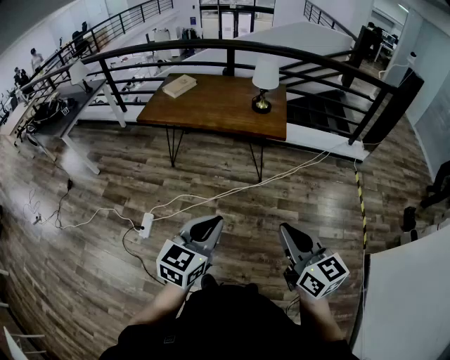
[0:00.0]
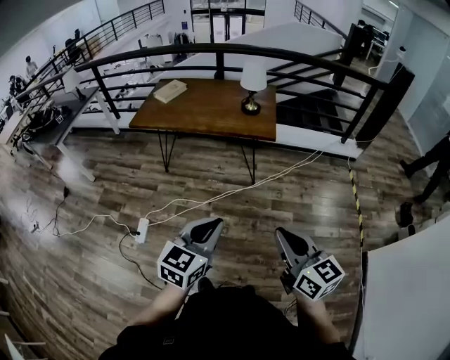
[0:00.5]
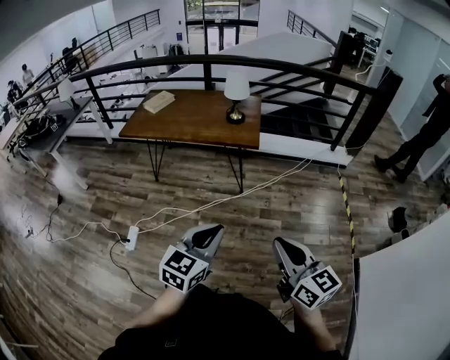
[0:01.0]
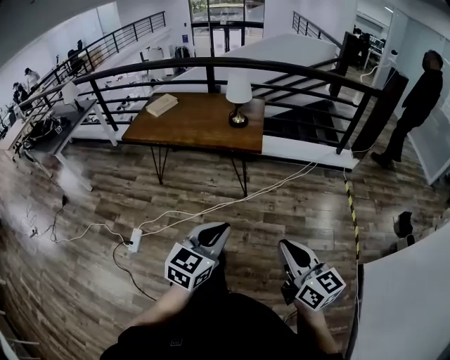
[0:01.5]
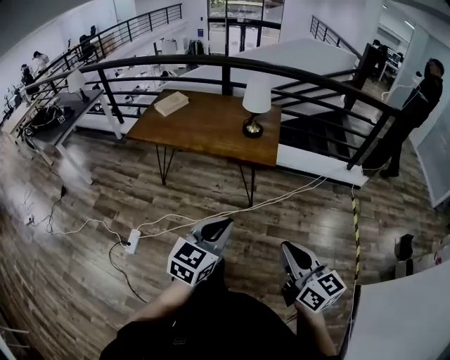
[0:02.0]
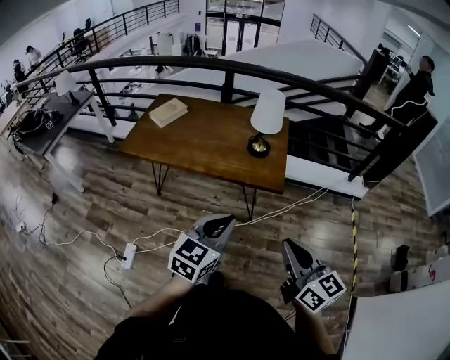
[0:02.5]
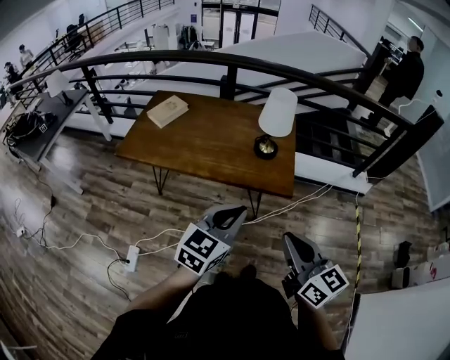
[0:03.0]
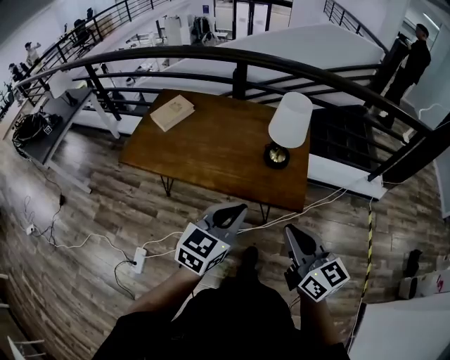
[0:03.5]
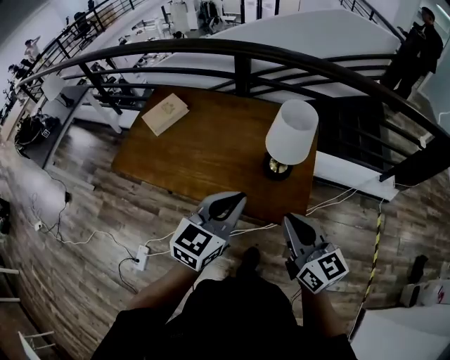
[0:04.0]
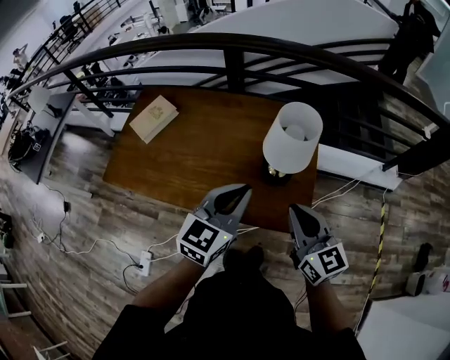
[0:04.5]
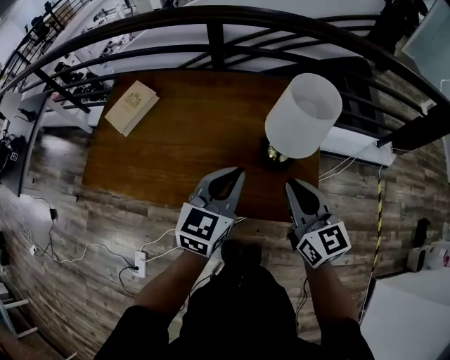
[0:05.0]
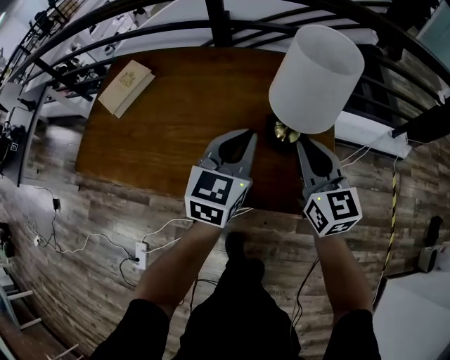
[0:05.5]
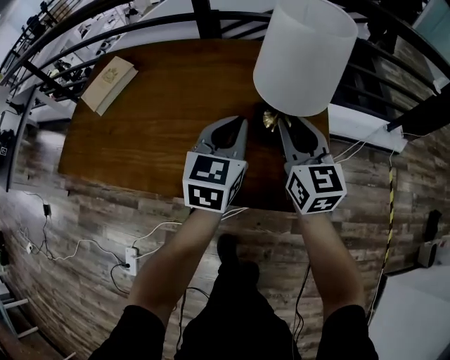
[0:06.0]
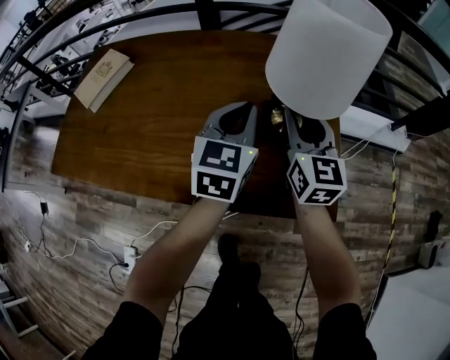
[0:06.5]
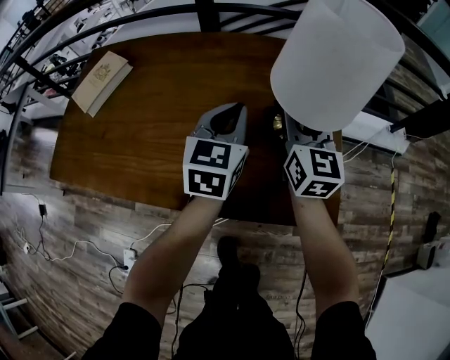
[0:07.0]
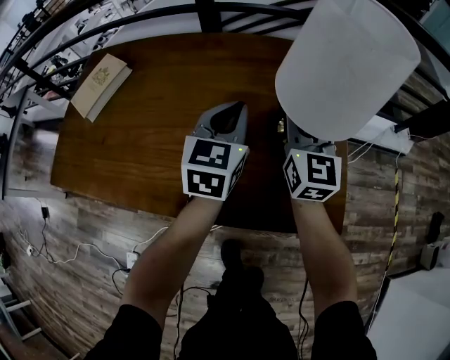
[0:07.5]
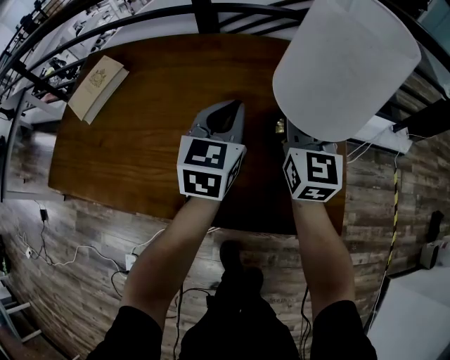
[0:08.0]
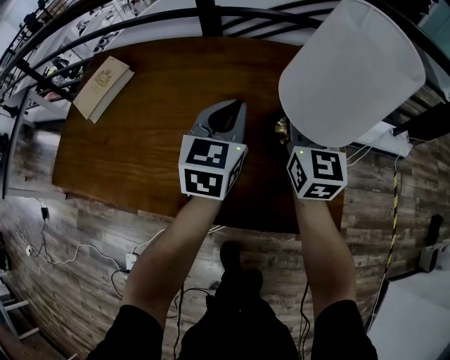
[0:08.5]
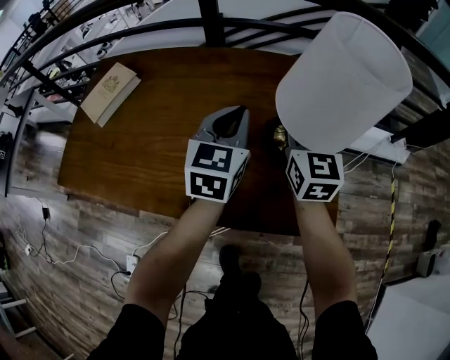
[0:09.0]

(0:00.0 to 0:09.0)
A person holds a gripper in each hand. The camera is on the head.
0:00.0 - 0:02.0: The right gripper shifts approximately 15 cm to the right and forward. Meanwhile the left gripper moves forward and to the right, about 20 cm.
0:02.0 - 0:04.5: The pair of grippers is taken forward, roughly 60 cm.
0:04.5 - 0:07.0: The left gripper shifts about 30 cm downward and forward. Meanwhile the right gripper shifts approximately 30 cm forward and downward, changes its angle by roughly 30 degrees, and opens.
0:07.0 - 0:09.0: There are only small adjustments of the grippers.

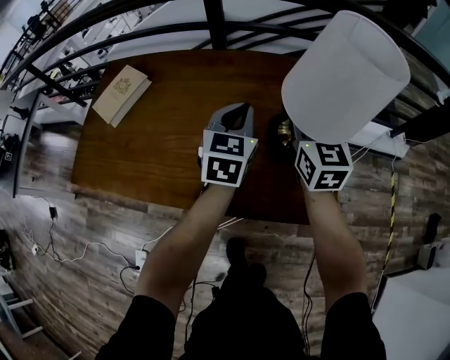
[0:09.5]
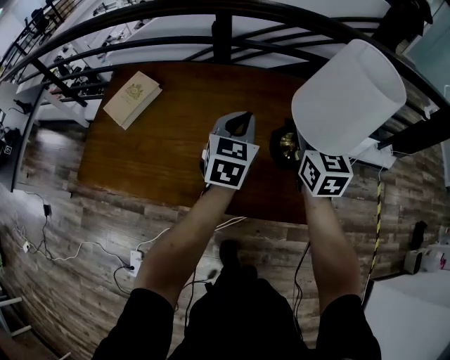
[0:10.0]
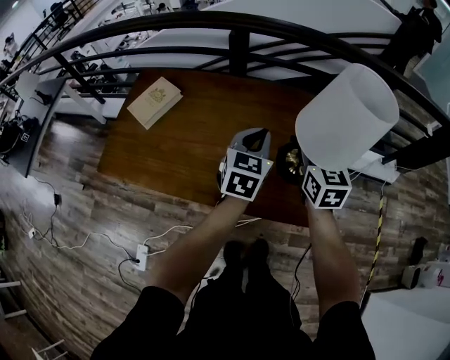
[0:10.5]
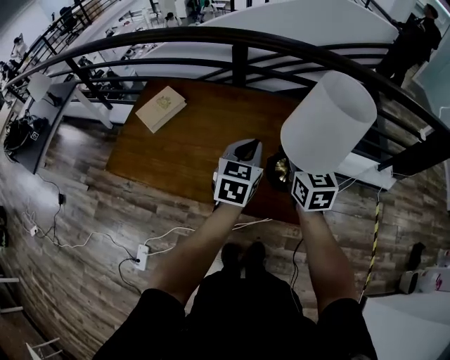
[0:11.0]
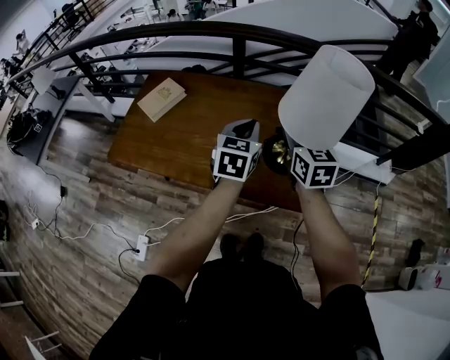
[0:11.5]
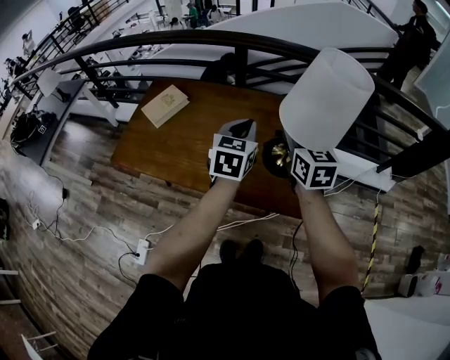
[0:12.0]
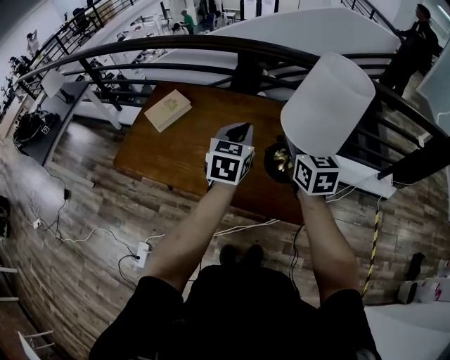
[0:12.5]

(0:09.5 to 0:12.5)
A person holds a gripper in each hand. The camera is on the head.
0:09.5 - 0:11.0: The two grippers go about 15 cm upward and backward.
0:11.0 - 0:12.5: The grippers both shift upward by about 5 cm.

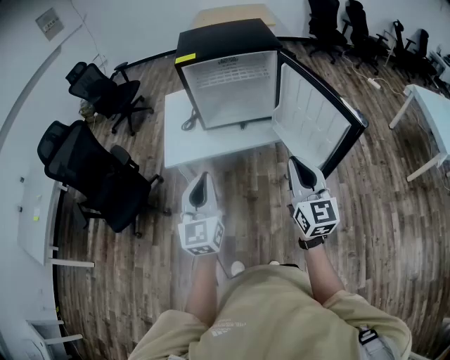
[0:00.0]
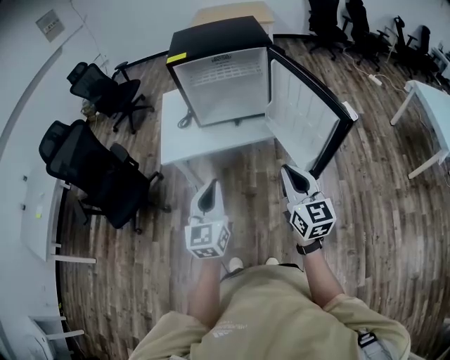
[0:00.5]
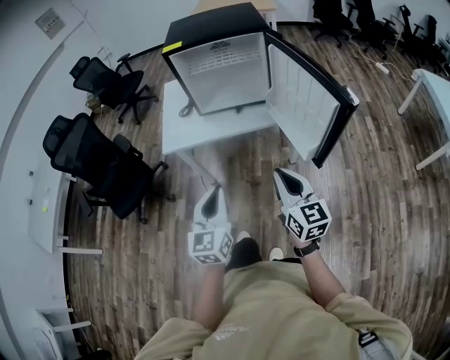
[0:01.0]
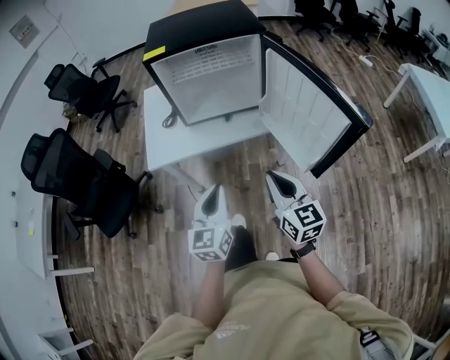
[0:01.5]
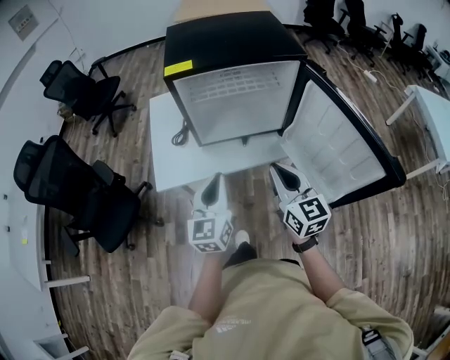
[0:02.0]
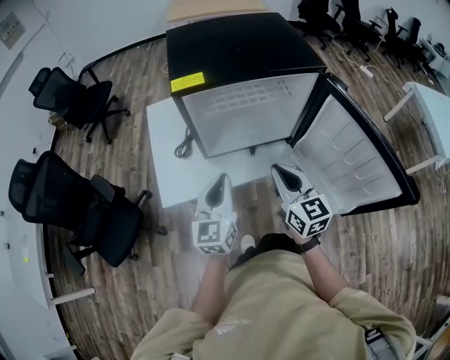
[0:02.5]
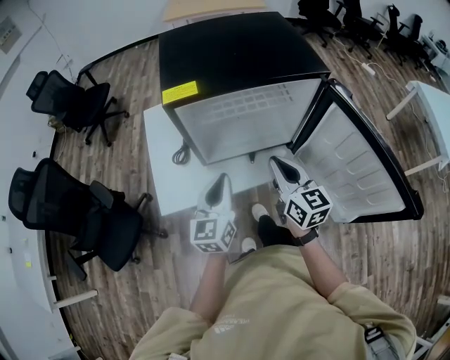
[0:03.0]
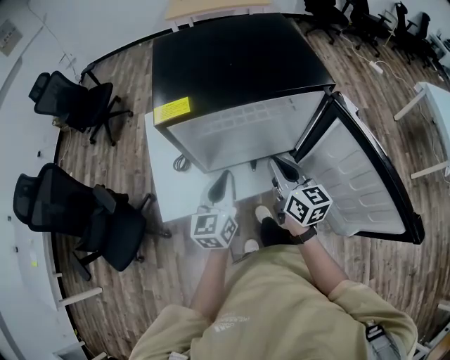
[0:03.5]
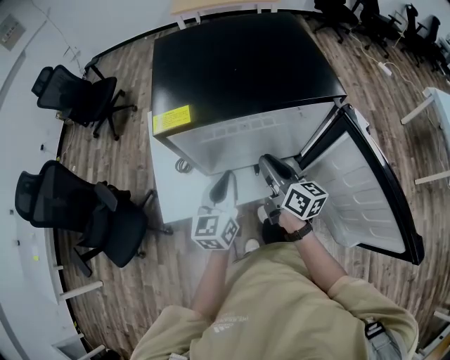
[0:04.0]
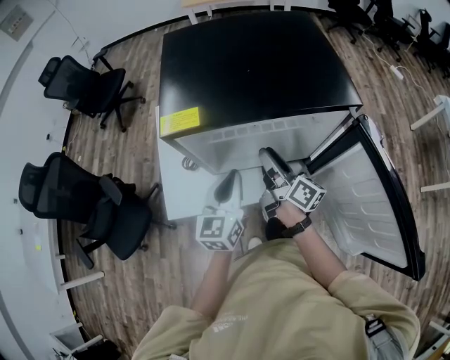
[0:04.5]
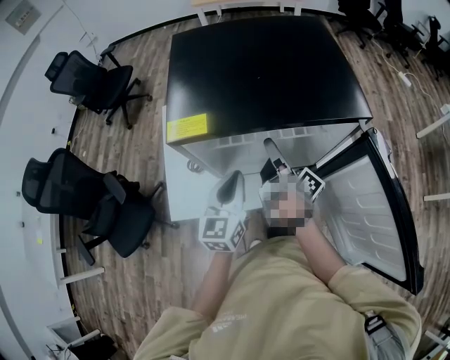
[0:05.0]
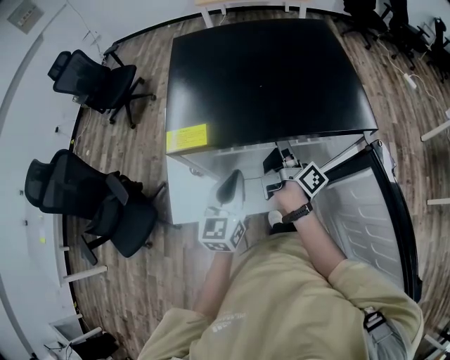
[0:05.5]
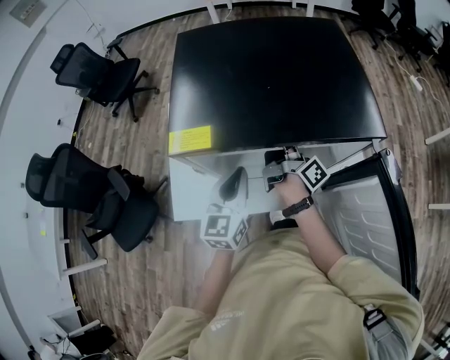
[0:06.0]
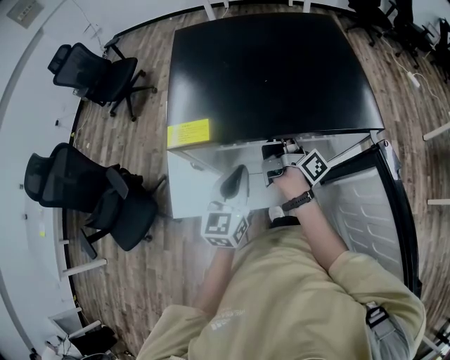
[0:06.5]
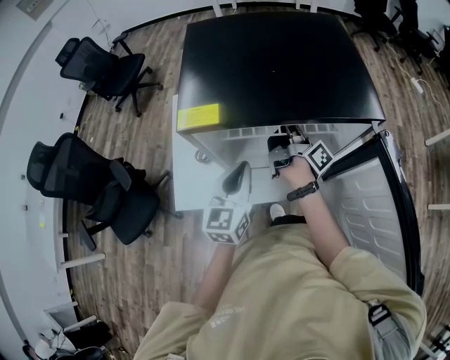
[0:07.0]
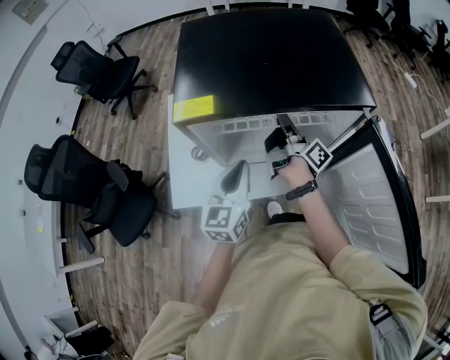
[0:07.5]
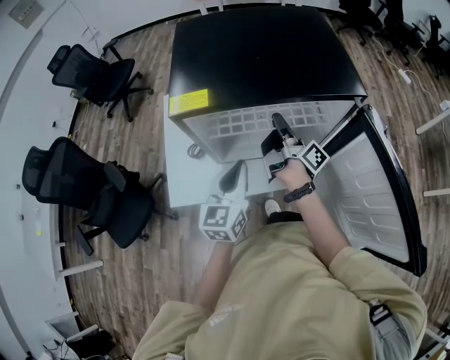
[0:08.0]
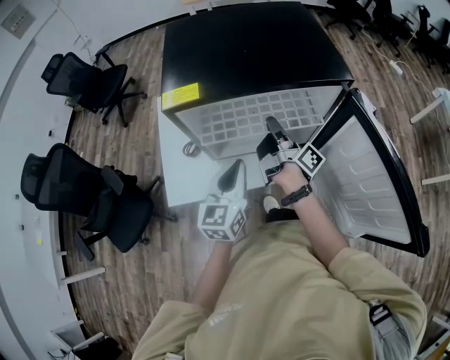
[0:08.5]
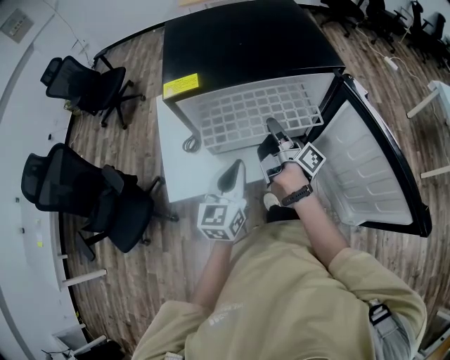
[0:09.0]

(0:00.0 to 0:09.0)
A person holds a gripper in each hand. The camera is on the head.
0:00.0 - 0:02.0: Both grippers move forward, about 20 cm.
0:02.0 - 0:04.5: Both grippers travel together forward, roughly 25 cm. The right gripper twists some 50 degrees clockwise, seen from behind, and opens its fingers.
0:04.5 - 0:07.0: The right gripper moves forward, approximately 10 cm, swivels approximately 30 degrees, and closes up.
0:07.0 - 0:09.0: The grippers both shift backward by some 10 cm.

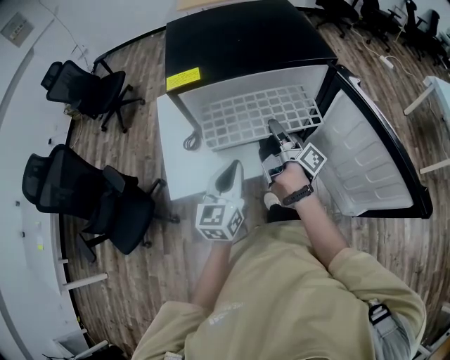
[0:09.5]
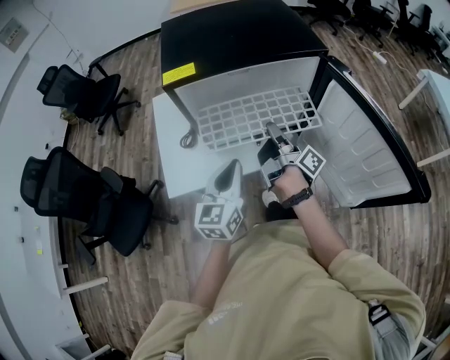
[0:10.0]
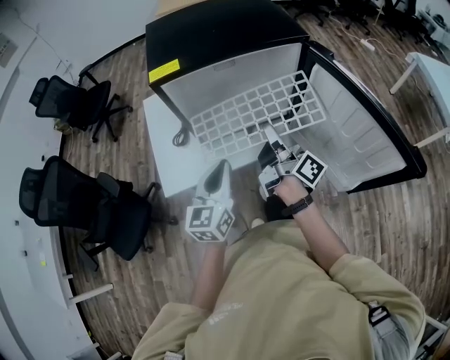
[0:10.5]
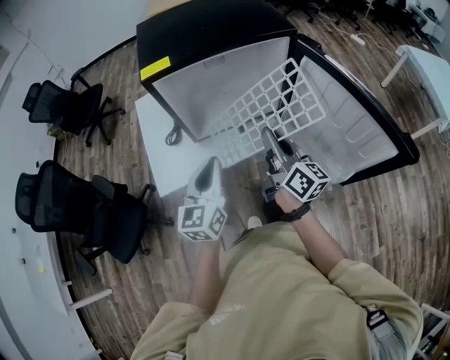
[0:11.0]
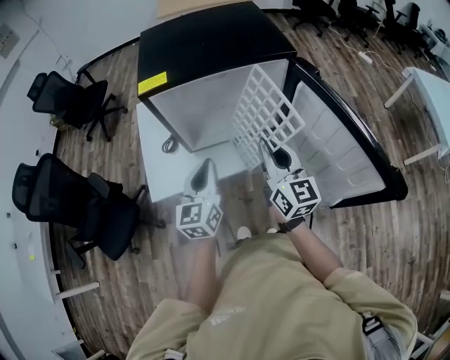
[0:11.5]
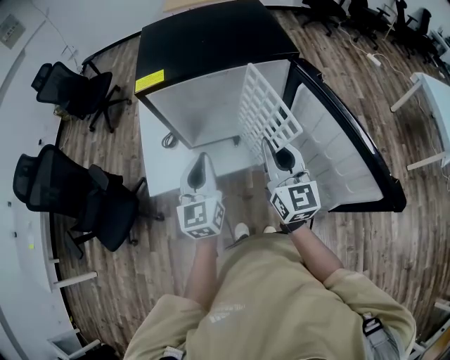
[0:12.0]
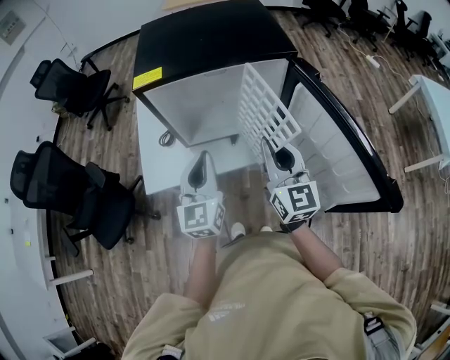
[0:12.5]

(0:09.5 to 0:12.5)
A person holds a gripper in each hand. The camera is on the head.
0:09.5 - 0:11.0: The right gripper travels backward and upward by about 15 cm, and rotates around the line of its fingers by some 50 degrees, counterclockwise from behind.
0:11.0 - 0:12.5: The right gripper ends up some 5 cm from where it was, and swivels about 40 degrees; the left gripper ends up some 5 cm from where it was.

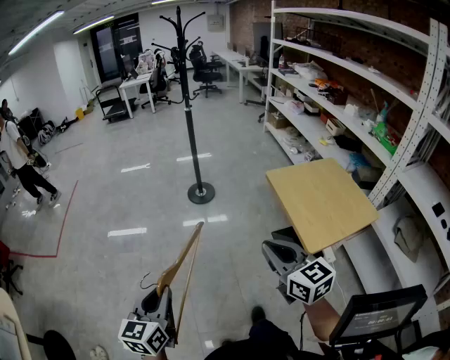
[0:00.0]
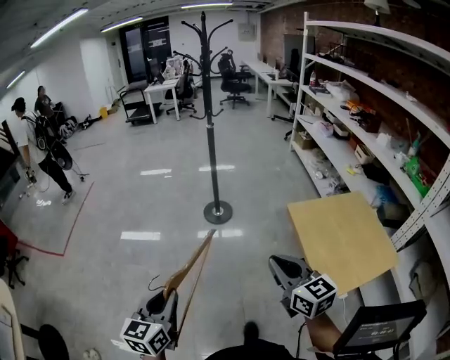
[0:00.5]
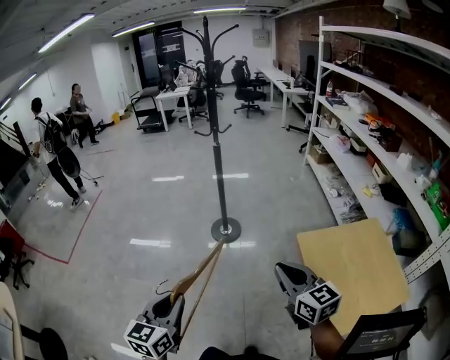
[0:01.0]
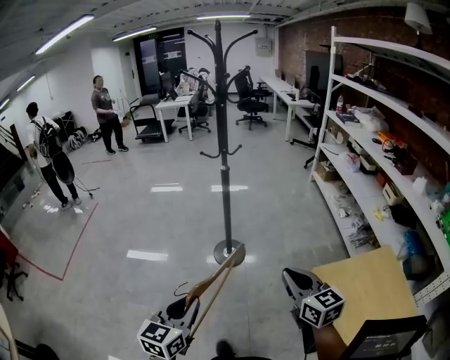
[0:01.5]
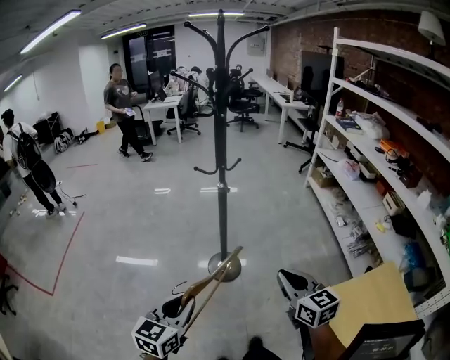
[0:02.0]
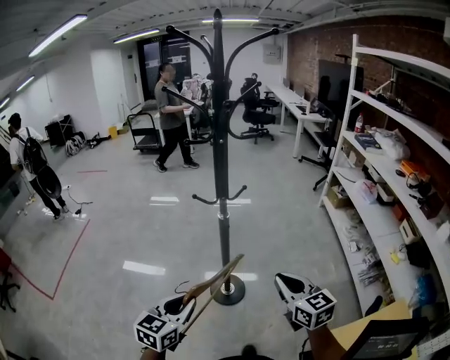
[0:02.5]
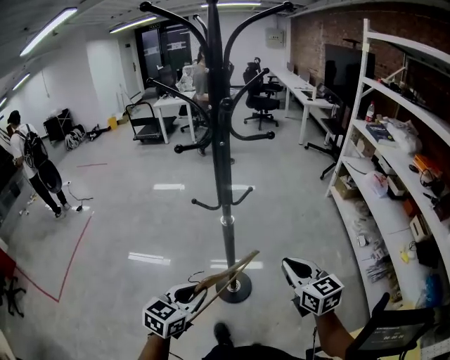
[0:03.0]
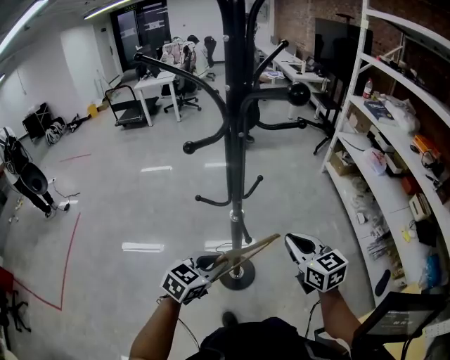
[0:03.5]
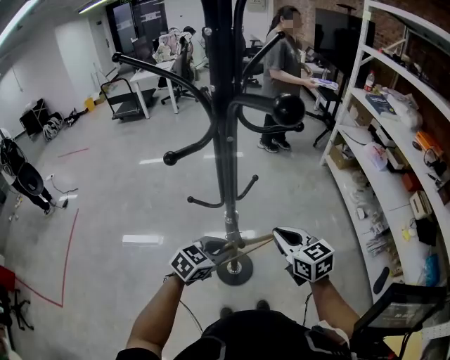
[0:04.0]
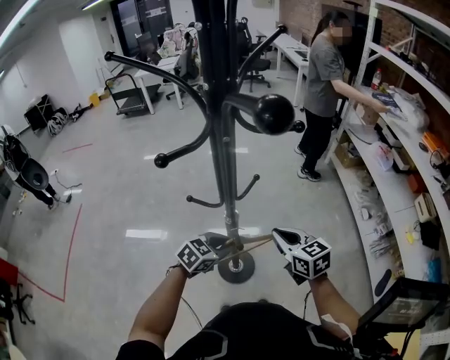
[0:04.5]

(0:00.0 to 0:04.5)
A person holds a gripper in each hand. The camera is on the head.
0:00.0 - 0:02.0: Both grippers are carried forward, roughly 60 cm.
0:02.0 - 0:04.5: Both grippers move forward, approximately 40 cm. The left gripper changes its angle by about 40 degrees.
